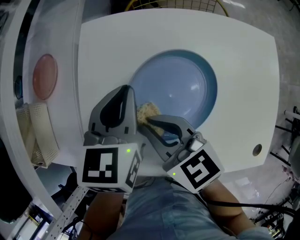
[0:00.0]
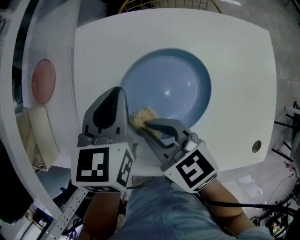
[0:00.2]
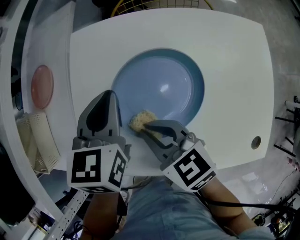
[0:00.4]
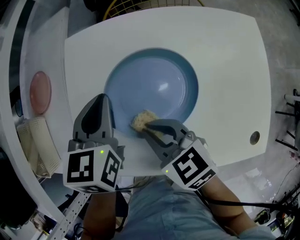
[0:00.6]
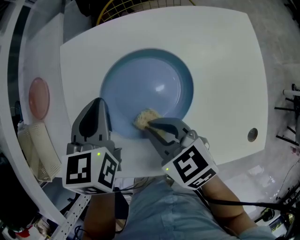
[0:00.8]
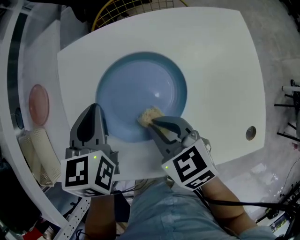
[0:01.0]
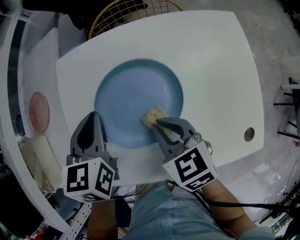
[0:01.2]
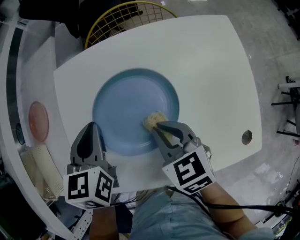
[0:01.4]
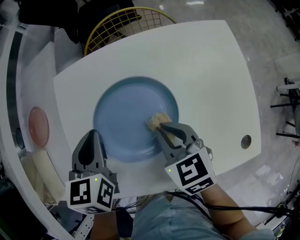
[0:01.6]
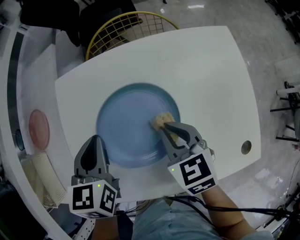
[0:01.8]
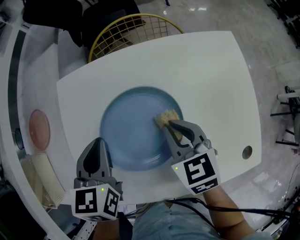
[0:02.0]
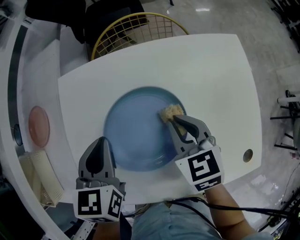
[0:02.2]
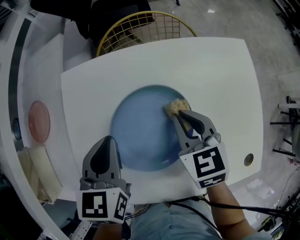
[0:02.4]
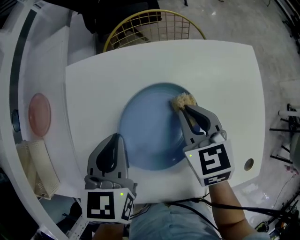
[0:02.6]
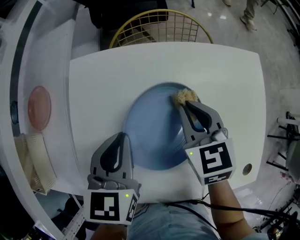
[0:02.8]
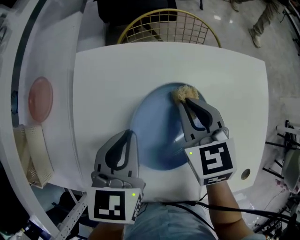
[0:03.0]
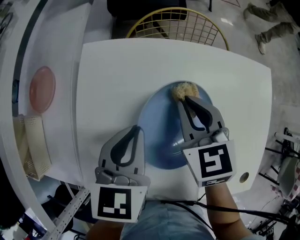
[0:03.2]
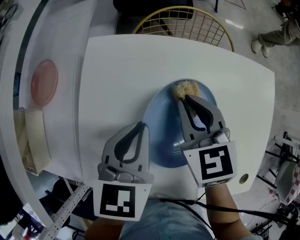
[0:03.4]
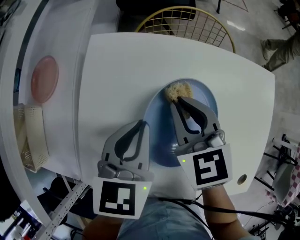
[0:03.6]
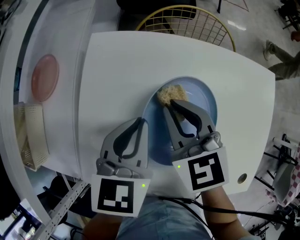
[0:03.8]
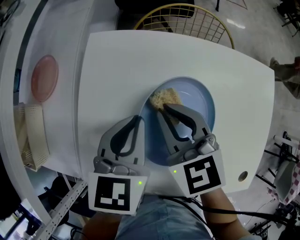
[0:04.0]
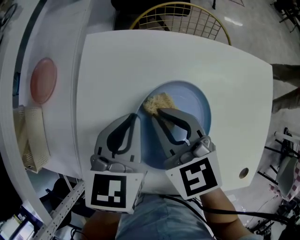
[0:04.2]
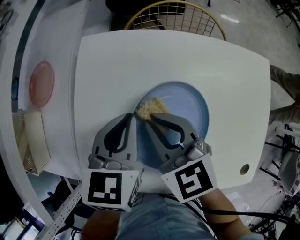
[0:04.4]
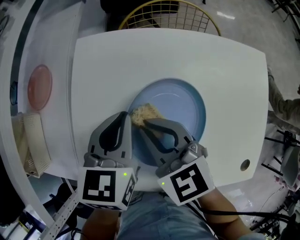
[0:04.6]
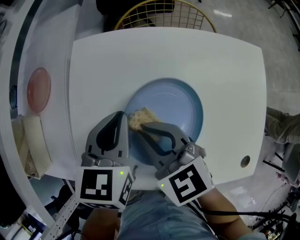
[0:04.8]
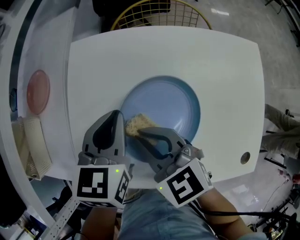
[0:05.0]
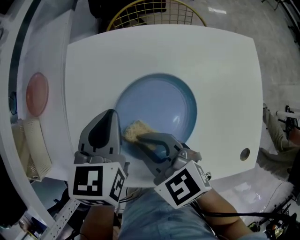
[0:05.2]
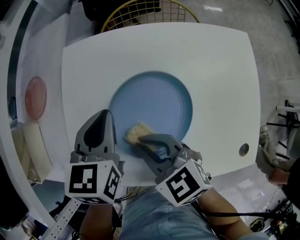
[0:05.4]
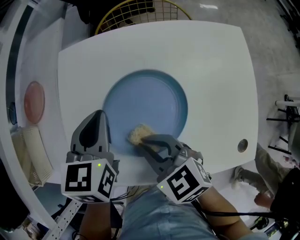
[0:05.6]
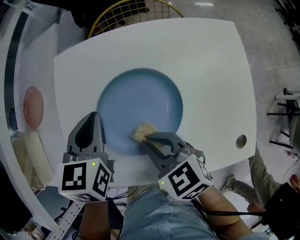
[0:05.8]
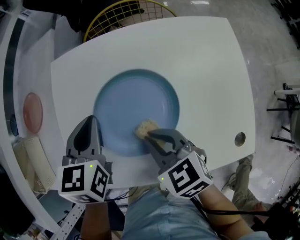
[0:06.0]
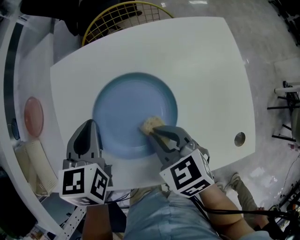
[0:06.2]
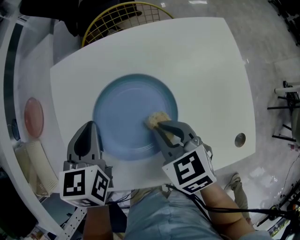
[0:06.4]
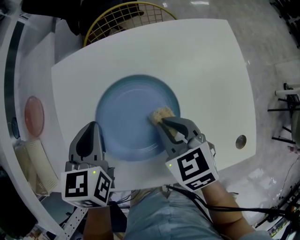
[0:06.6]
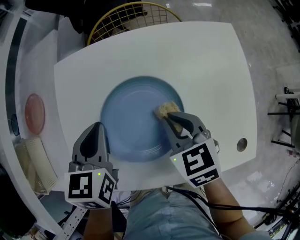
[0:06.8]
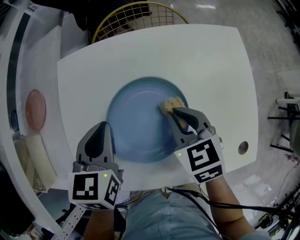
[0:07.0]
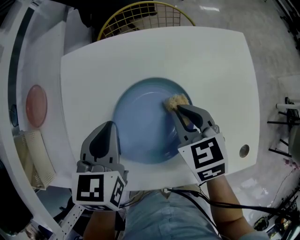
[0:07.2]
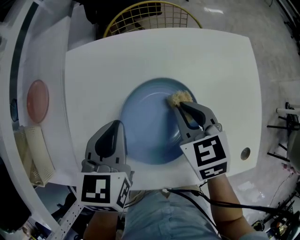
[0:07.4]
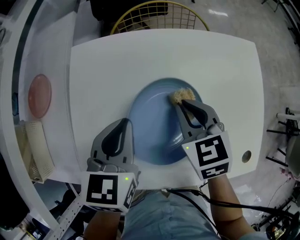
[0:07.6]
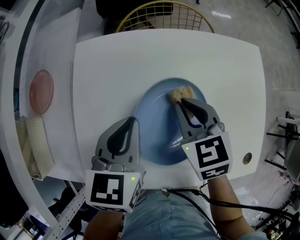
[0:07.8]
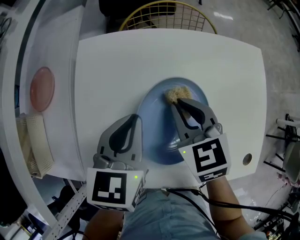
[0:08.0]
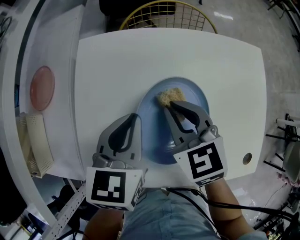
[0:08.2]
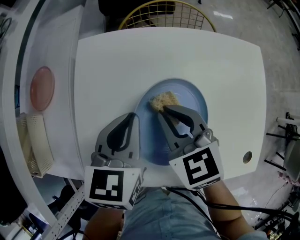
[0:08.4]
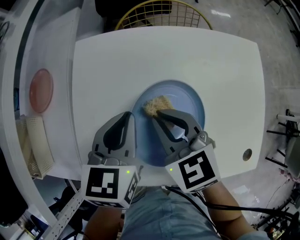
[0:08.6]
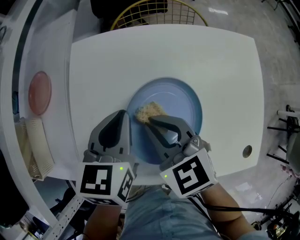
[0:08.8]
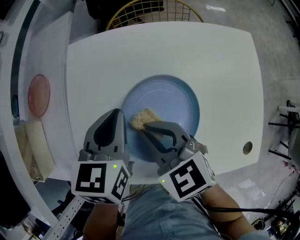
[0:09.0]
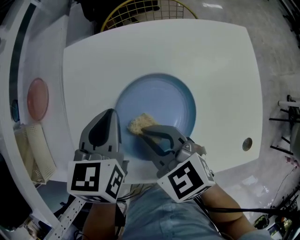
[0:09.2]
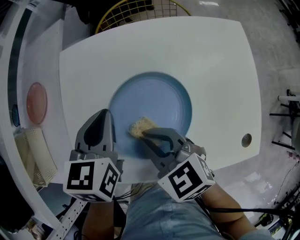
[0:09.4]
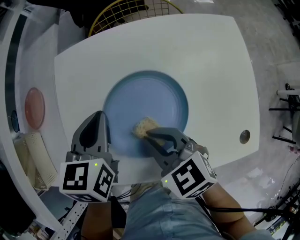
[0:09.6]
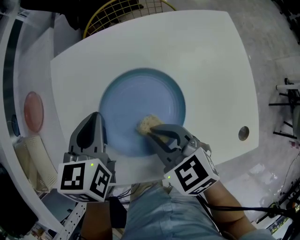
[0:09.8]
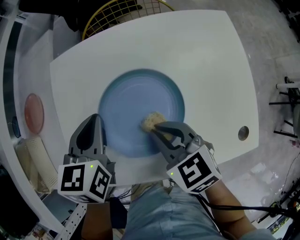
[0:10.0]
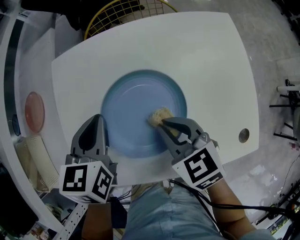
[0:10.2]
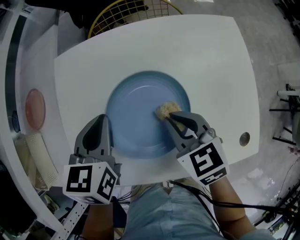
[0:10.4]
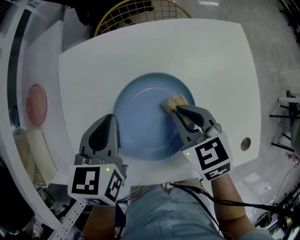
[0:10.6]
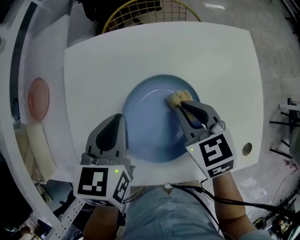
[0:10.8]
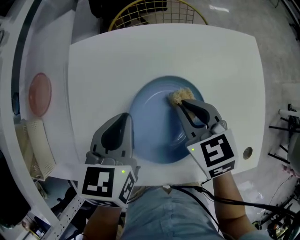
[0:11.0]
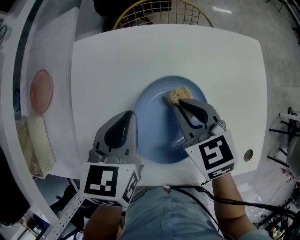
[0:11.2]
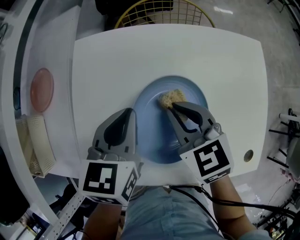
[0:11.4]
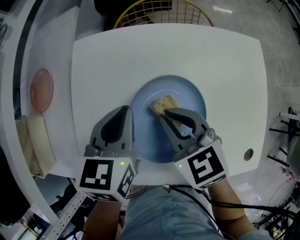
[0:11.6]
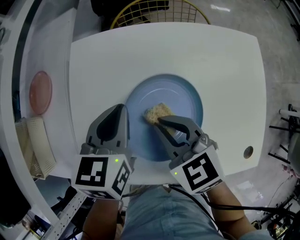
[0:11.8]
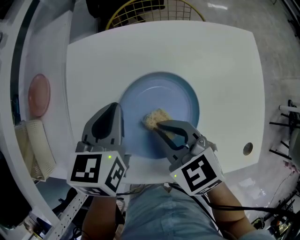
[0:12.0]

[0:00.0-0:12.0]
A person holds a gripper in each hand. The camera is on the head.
0:00.0 to 0:01.6: The right gripper is displaced to the right by about 15 cm, and turns by approximately 30 degrees.
0:01.6 to 0:03.0: The right gripper heads forward, covering some 15 cm.
0:03.0 to 0:04.4: The right gripper goes about 15 cm to the left and backward, and turns by roughly 20 degrees.
0:04.4 to 0:06.0: The right gripper heads backward and to the right, covering some 15 cm.
0:06.0 to 0:07.6: The right gripper moves forward, about 10 cm.
0:07.6 to 0:09.0: The right gripper moves to the left and backward, some 10 cm, and changes its angle by about 20 degrees.
0:09.0 to 0:10.4: The right gripper heads to the right, covering approximately 10 cm.
0:10.4 to 0:12.0: The right gripper goes some 10 cm to the left.

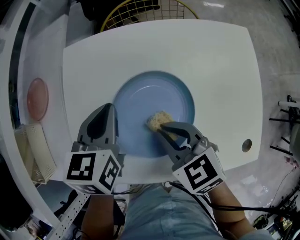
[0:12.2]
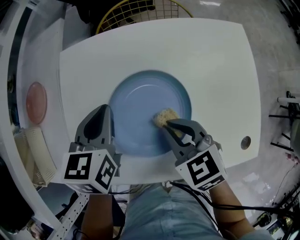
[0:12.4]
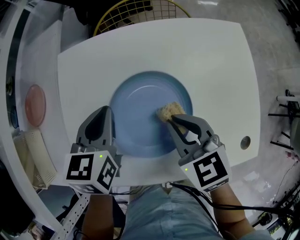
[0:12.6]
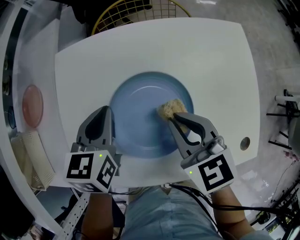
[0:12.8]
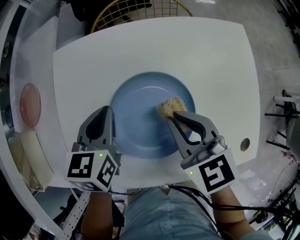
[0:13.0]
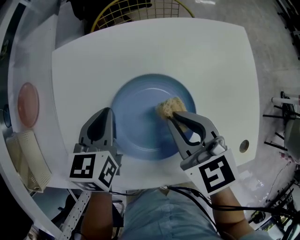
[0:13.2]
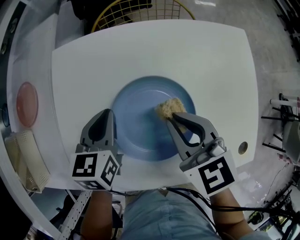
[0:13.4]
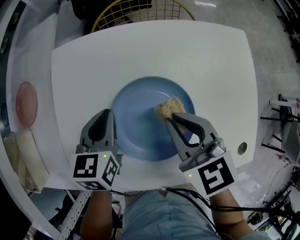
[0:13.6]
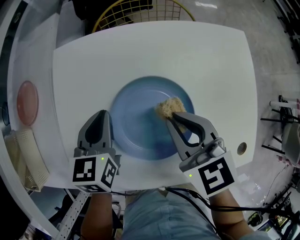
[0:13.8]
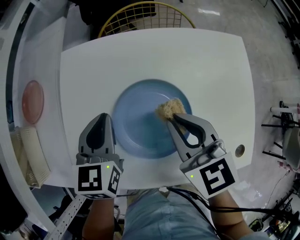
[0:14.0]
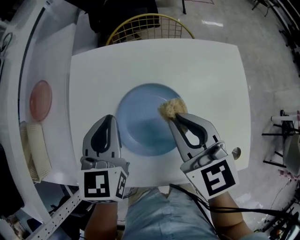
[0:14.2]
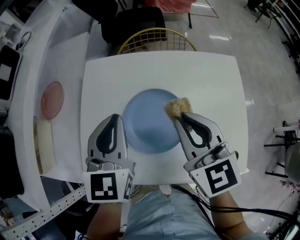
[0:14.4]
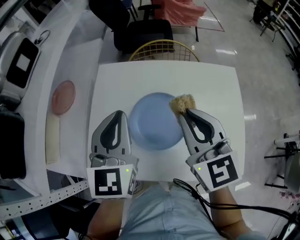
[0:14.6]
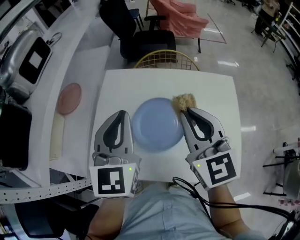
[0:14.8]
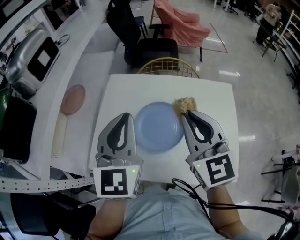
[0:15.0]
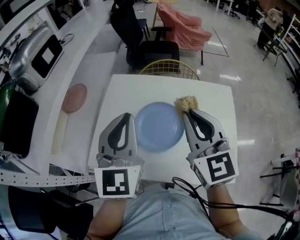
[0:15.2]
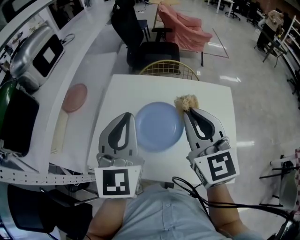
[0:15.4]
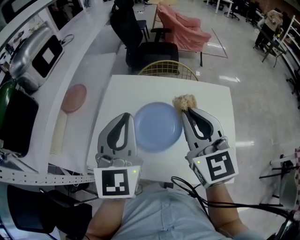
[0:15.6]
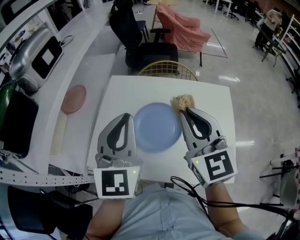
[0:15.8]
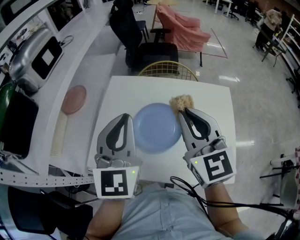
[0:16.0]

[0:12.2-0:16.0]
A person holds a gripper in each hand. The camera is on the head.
0:12.2 to 0:13.4: The right gripper changes place by approximately 5 cm; the left gripper heads downward, covering some 5 cm.
0:13.4 to 0:14.8: The right gripper heads upward, covering roughly 20 cm, and rotates approximately 30 degrees. The left gripper heads upward and backward, covering roughly 30 cm, and tips its fingers upward by some 30 degrees.
0:14.8 to 0:16.0: The right gripper ends up about 5 cm from where it was, while the left gripper heads backward, covering roughly 5 cm.

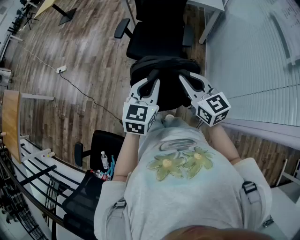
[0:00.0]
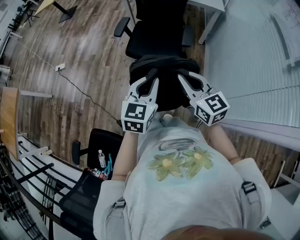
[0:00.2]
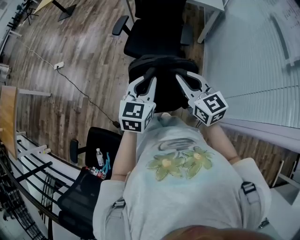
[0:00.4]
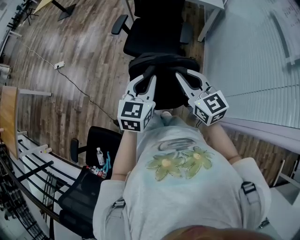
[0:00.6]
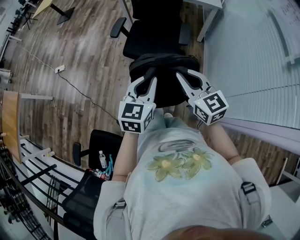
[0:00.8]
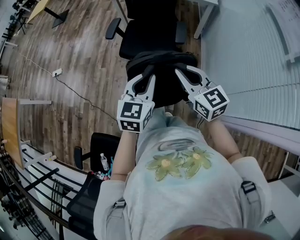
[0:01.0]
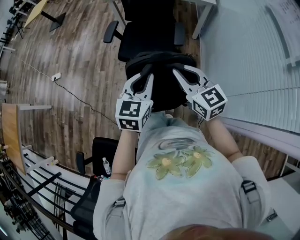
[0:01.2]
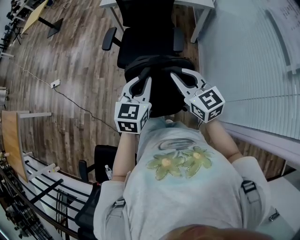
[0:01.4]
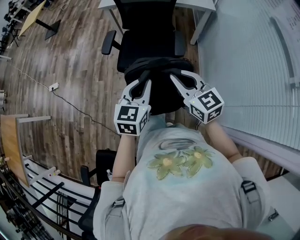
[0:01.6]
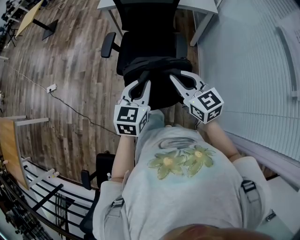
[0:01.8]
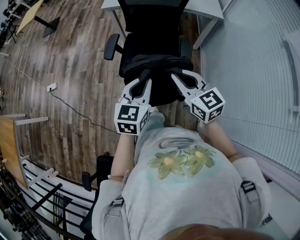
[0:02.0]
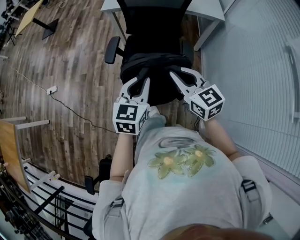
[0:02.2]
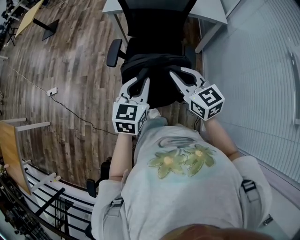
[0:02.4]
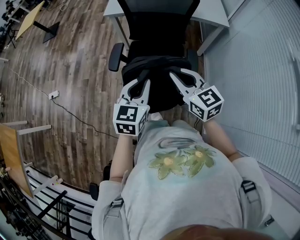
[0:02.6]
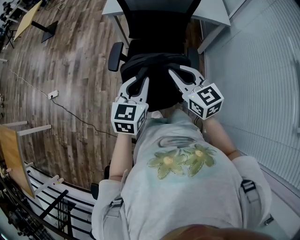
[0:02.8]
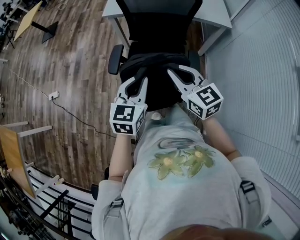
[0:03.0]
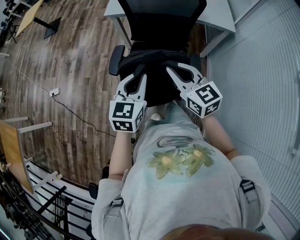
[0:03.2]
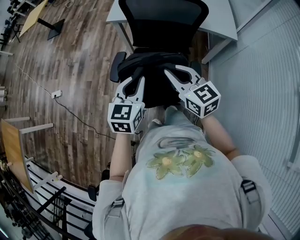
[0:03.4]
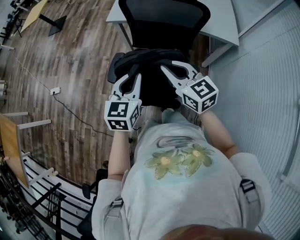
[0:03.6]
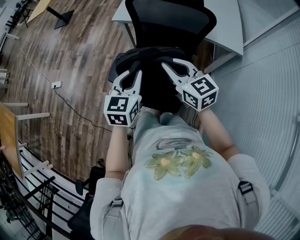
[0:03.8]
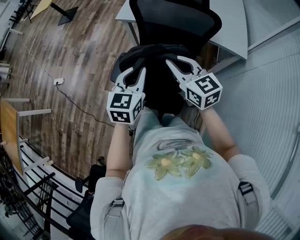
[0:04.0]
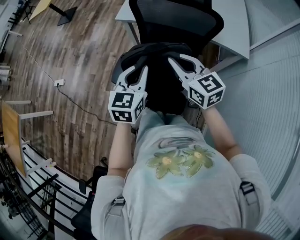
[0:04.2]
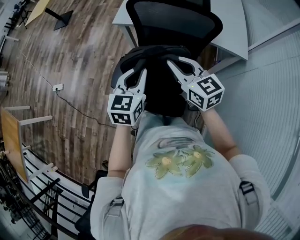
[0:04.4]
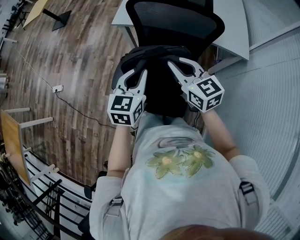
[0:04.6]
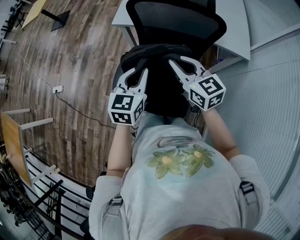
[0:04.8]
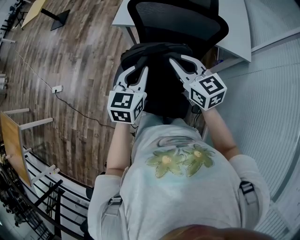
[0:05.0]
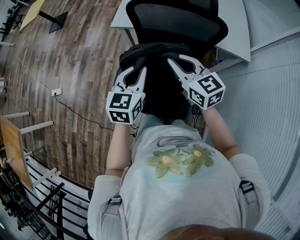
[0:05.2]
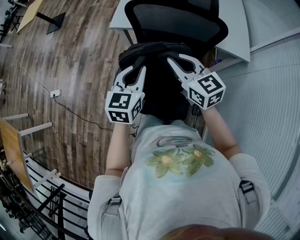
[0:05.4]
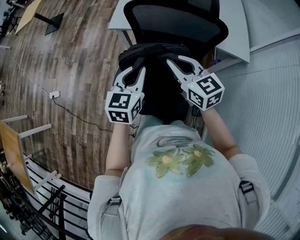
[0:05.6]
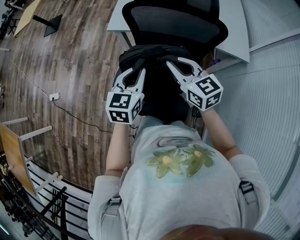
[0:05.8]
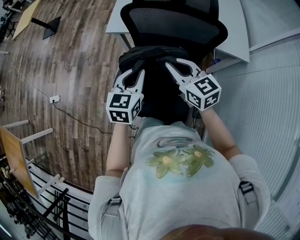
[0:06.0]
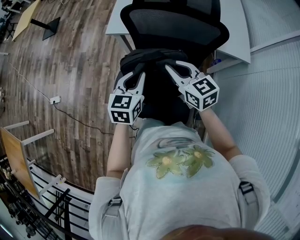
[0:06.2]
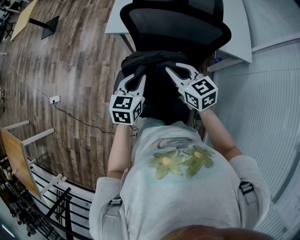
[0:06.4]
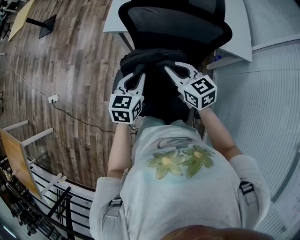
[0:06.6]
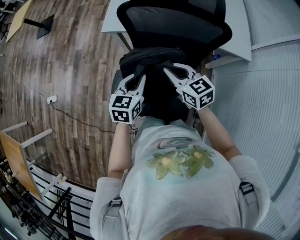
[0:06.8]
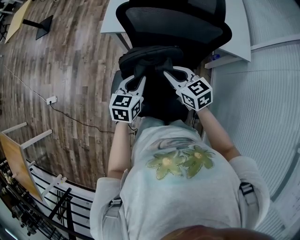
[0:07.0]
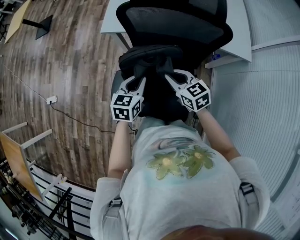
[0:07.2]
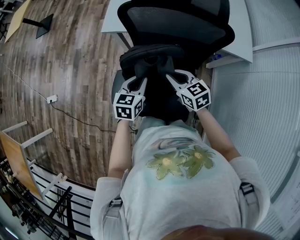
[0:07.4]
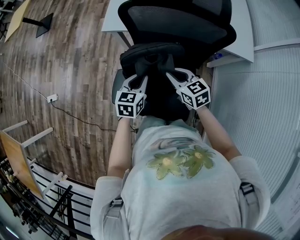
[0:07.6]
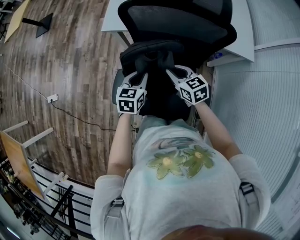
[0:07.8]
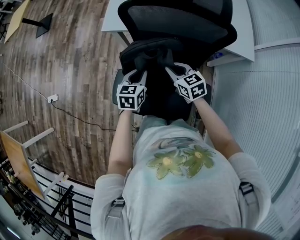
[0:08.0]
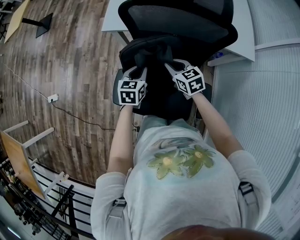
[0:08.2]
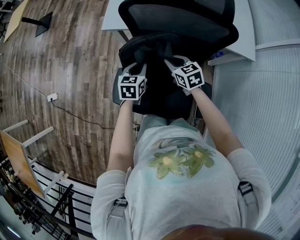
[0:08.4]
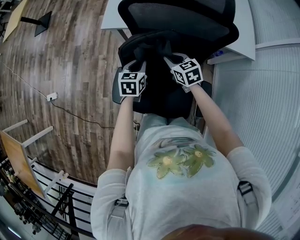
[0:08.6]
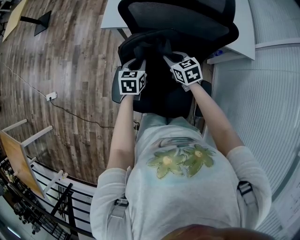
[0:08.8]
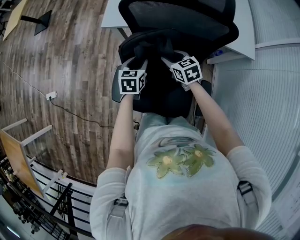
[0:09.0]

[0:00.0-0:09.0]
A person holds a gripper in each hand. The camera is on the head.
0:00.0 to 0:01.6: The two grippers go about 15 cm forward.
0:01.6 to 0:03.0: The grippers both shift forward by about 20 cm.
0:03.0 to 0:04.4: The grippers both shift forward by some 20 cm.
0:04.4 to 0:06.0: Both grippers move forward, about 10 cm.
0:06.0 to 0:07.6: Both grippers travel together downward, some 15 cm.
0:07.6 to 0:09.0: The left gripper shifts roughly 5 cm forward, and opens up. Meanwhile the right gripper goes about 10 cm forward and downward, and opens.
